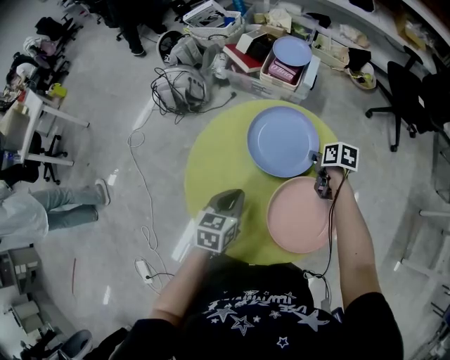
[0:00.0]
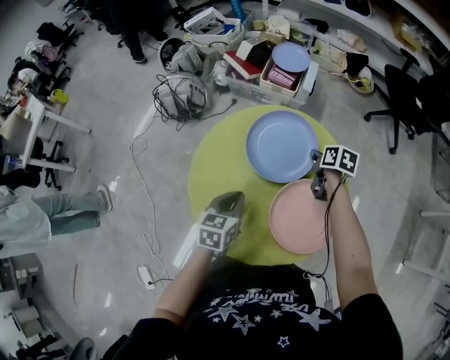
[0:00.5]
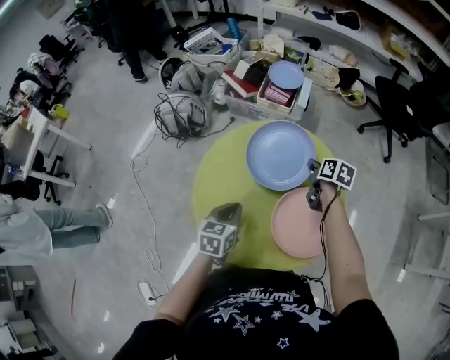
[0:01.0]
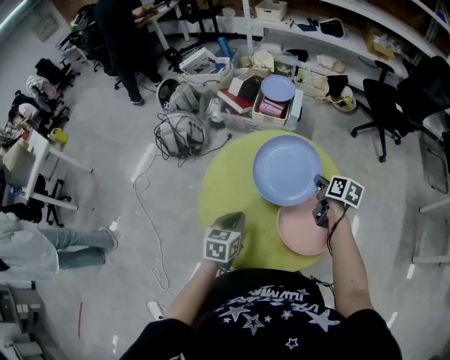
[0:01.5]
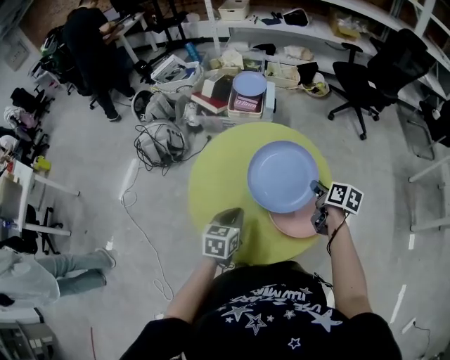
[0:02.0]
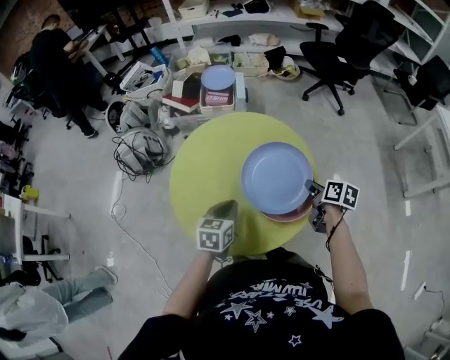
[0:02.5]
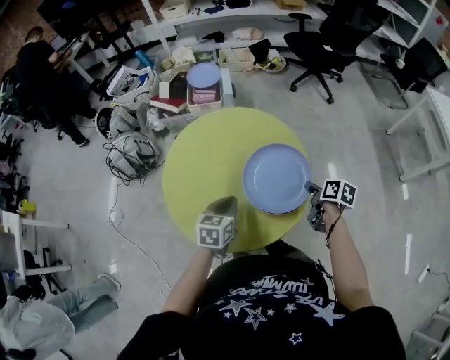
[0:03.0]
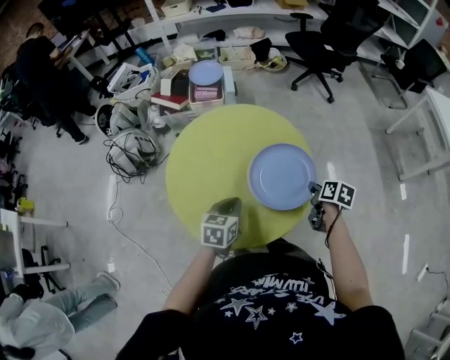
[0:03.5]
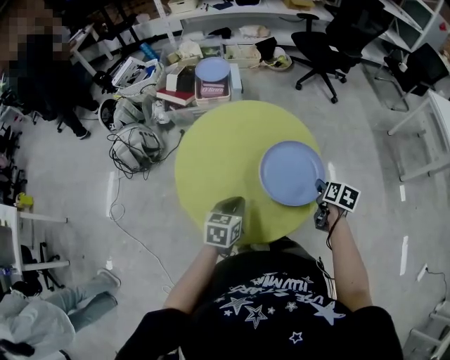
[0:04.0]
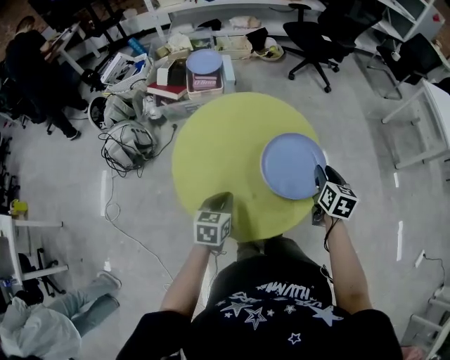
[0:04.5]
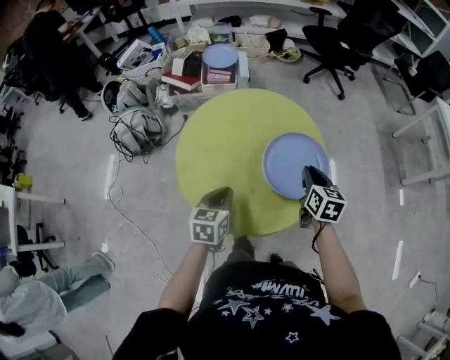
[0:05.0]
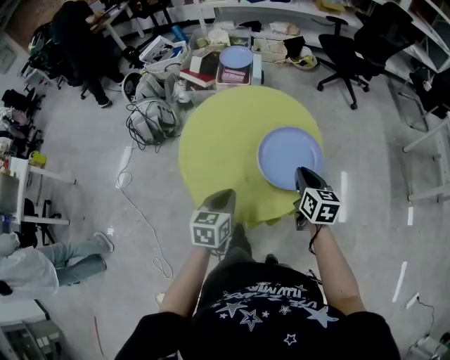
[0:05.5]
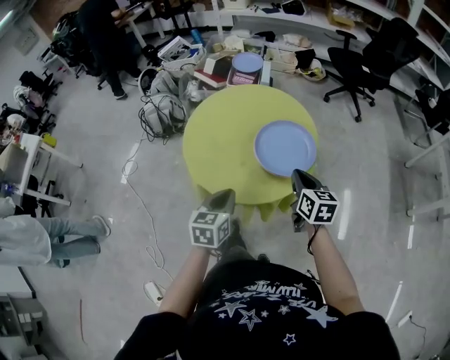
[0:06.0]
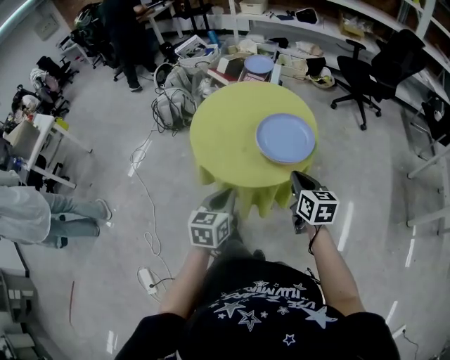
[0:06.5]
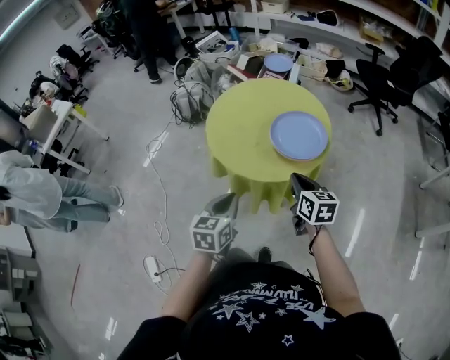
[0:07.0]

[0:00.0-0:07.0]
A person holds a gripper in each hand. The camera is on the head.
0:00.0 to 0:02.0: The right gripper goes about 20 cm backward and upward, and rotates about 30 degrees.
0:02.0 to 0:03.5: The right gripper heads backward, to the right and downward, covering some 15 cm. Meanwhile the left gripper goes roughly 5 cm to the right.
0:03.5 to 0:05.0: The right gripper shifts about 10 cm to the left and upward, rotates approximately 30 degrees, and opens, then closes once more. Meanwhile the left gripper moves to the left, roughly 5 cm.
0:05.0 to 0:07.0: The left gripper shifts by about 30 cm, and changes its angle by about 30 degrees; the right gripper moves about 20 cm, and rotates some 40 degrees.

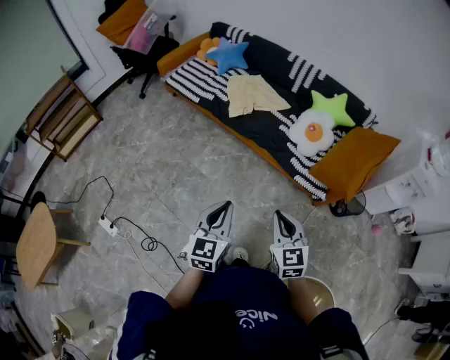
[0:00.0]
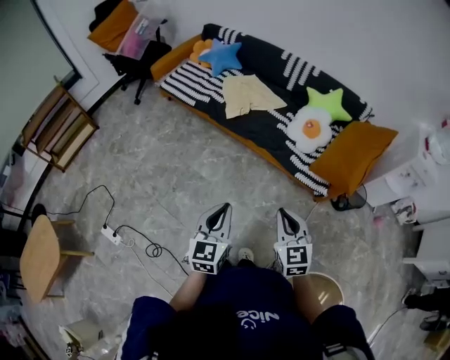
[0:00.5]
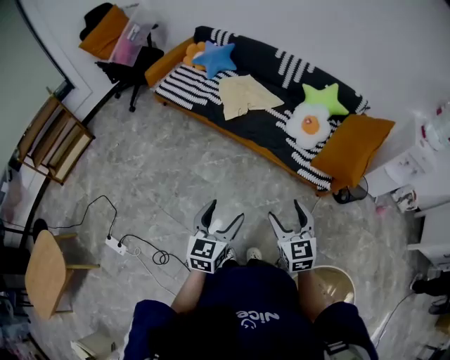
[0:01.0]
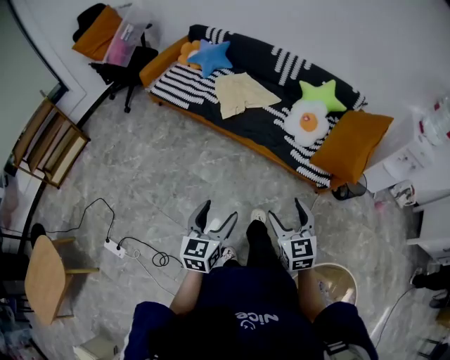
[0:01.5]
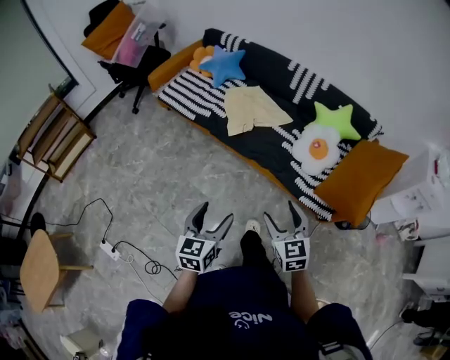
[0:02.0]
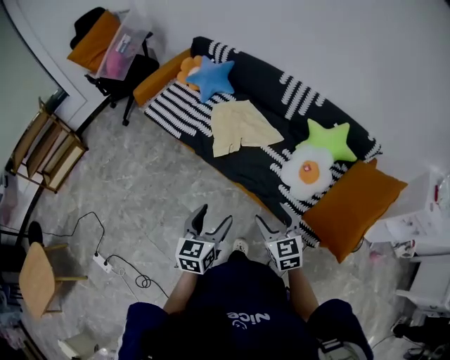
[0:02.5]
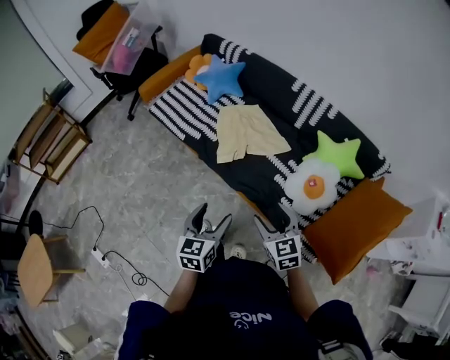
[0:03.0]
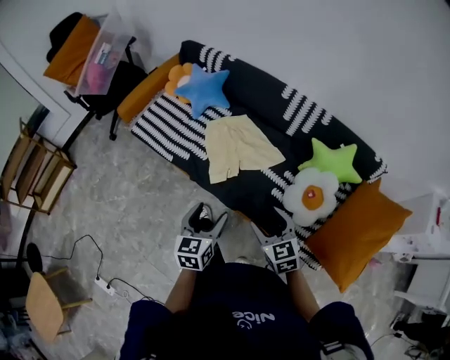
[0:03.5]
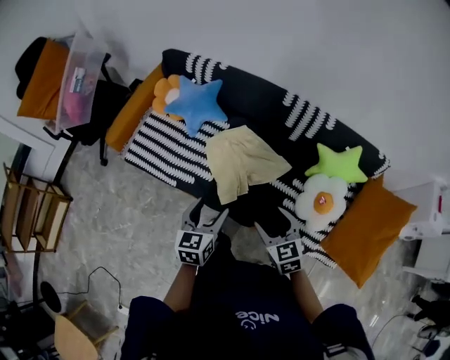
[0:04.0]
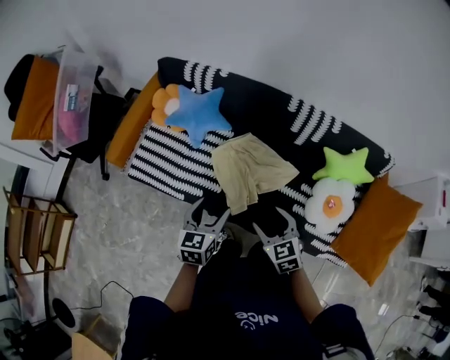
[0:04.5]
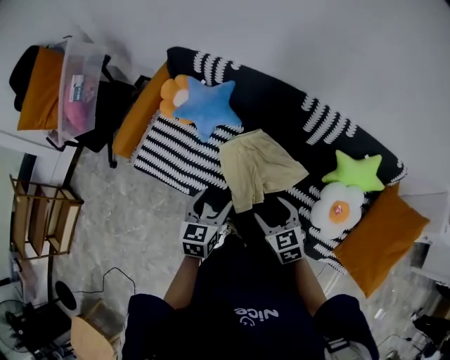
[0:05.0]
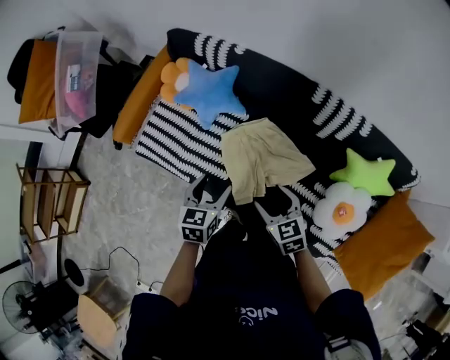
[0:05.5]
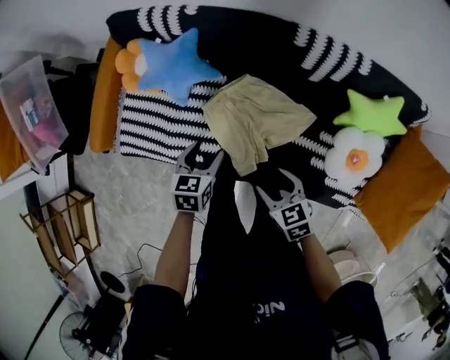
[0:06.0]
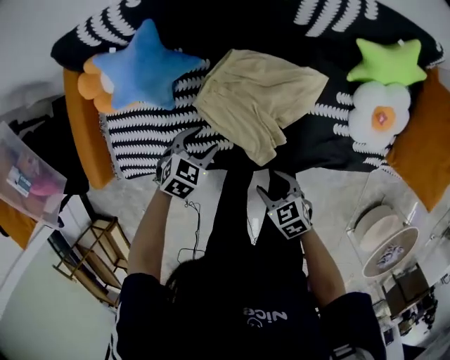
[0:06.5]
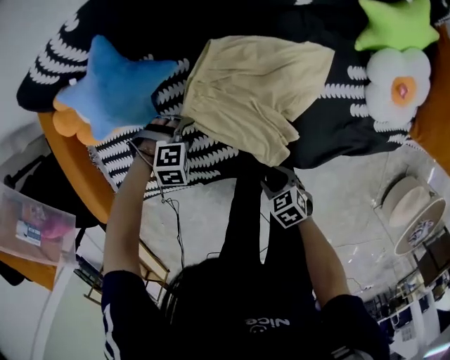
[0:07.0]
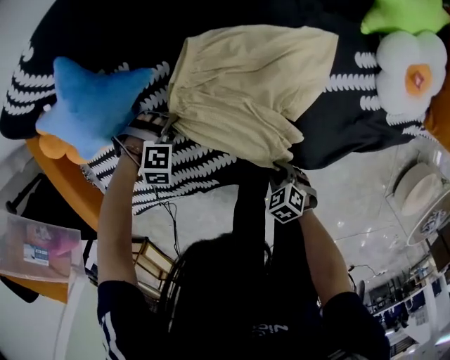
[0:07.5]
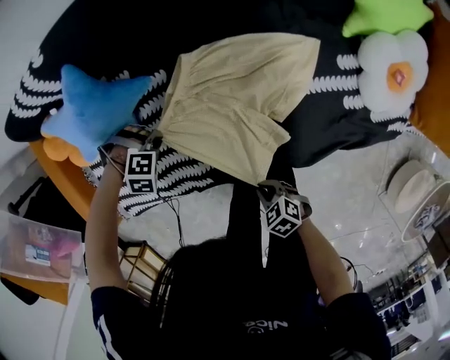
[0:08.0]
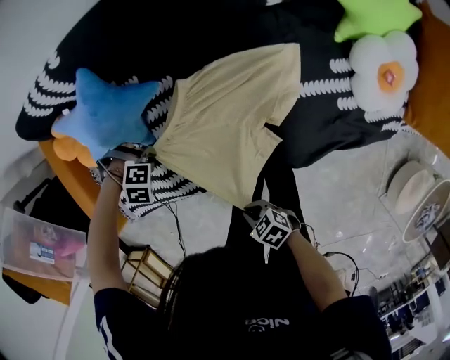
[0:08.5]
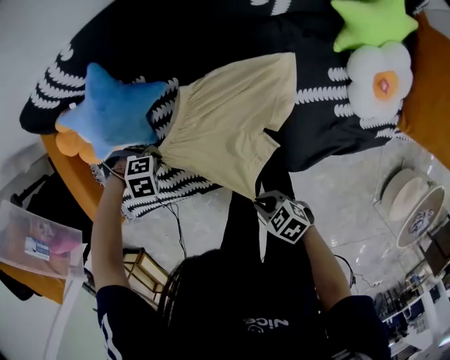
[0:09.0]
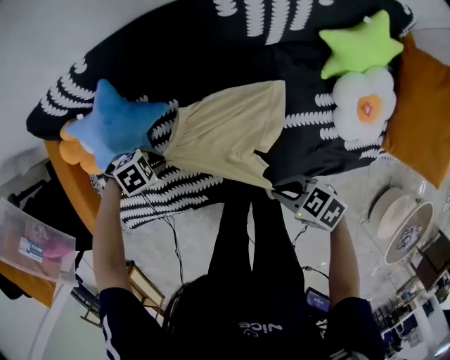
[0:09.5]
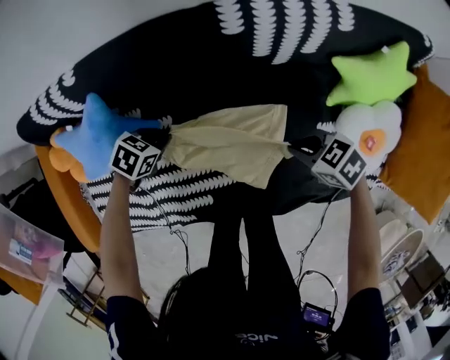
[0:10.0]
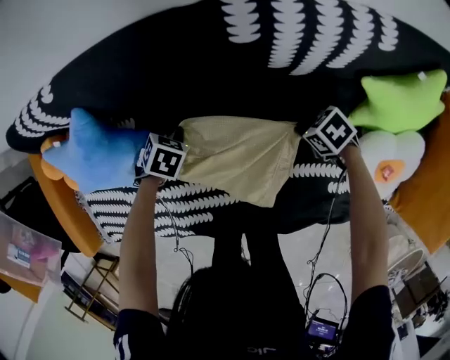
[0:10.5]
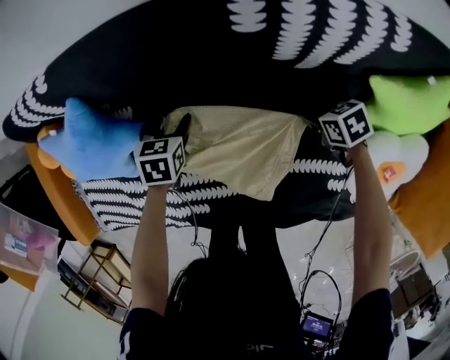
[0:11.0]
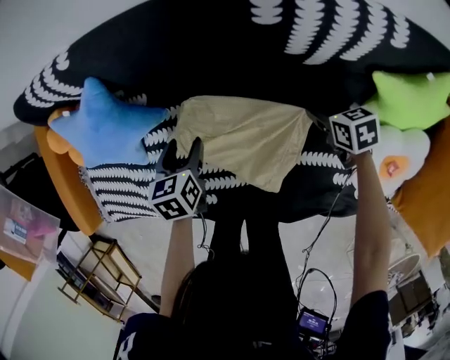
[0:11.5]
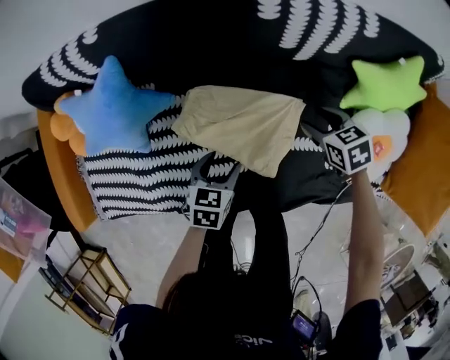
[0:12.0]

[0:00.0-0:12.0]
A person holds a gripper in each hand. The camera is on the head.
0:00.0 to 0:02.0: The right gripper moves forward, roughly 15 cm, and opens its fingers. Meanwhile the left gripper is displaced forward and to the left by about 15 cm, and opens.
0:02.0 to 0:04.0: The two grippers travel together, forward, roughly 50 cm.
0:04.0 to 0:06.0: Both grippers travel together forward and downward, roughly 20 cm. The right gripper rotates roughly 20 degrees. The left gripper rotates some 30 degrees.
0:06.0 to 0:08.0: Both grippers travel together downward, approximately 25 cm. The left gripper rolls clockwise, seen from behind, by about 110 degrees, and closes up, while the right gripper rotates approximately 20 degrees, and closes up.
0:08.0 to 0:10.0: The left gripper ends up roughly 20 cm from where it was, and twists about 80 degrees counterclockwise, seen from behind; the right gripper ends up about 40 cm from where it was.
0:10.0 to 0:12.0: The right gripper reaches about 15 cm downward, then returns, turns by approximately 20 degrees, and opens, while the left gripper moves approximately 10 cm downward and comes back, changes its angle by some 30 degrees, and opens its fingers.

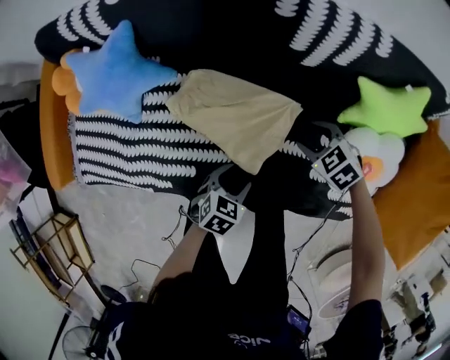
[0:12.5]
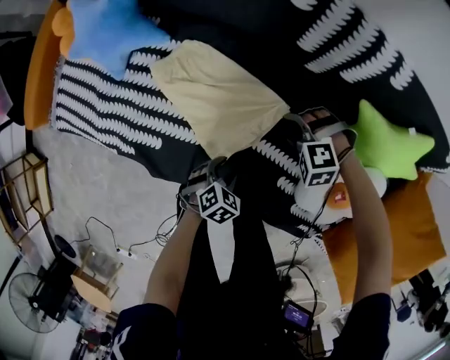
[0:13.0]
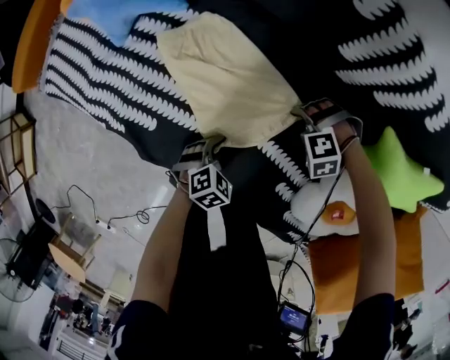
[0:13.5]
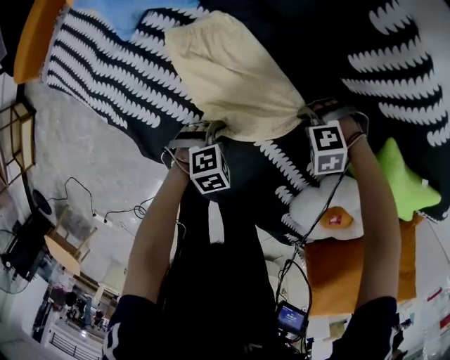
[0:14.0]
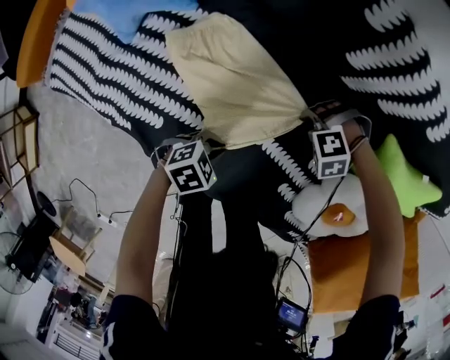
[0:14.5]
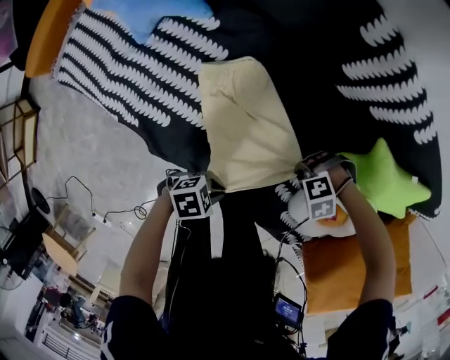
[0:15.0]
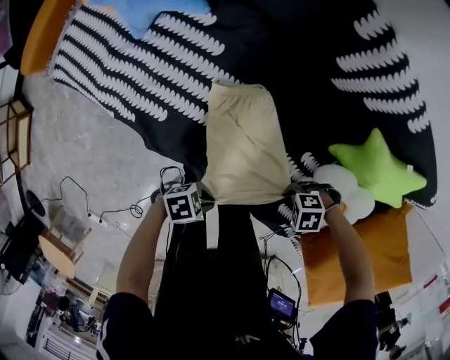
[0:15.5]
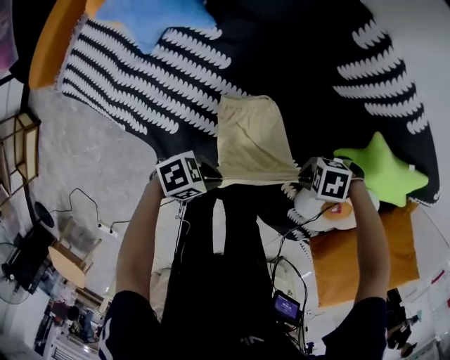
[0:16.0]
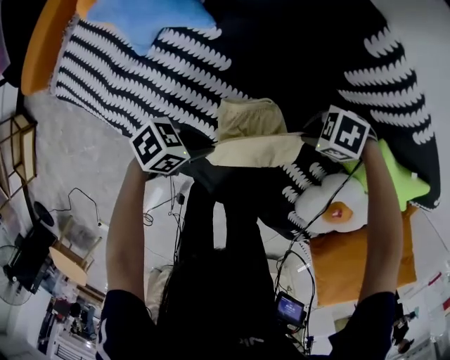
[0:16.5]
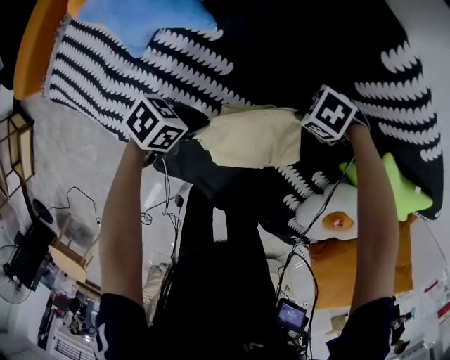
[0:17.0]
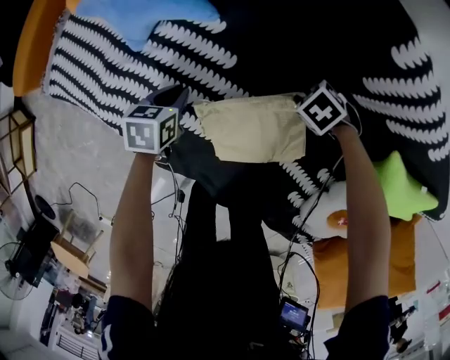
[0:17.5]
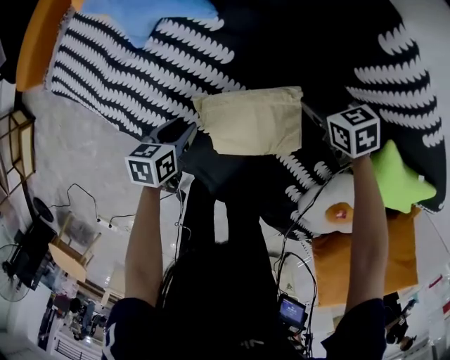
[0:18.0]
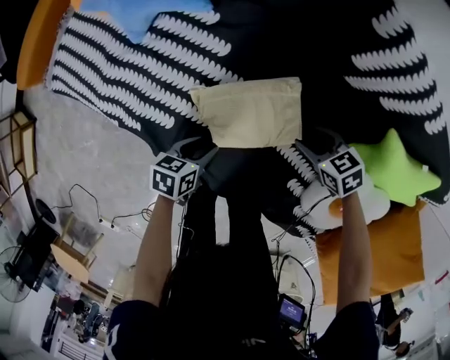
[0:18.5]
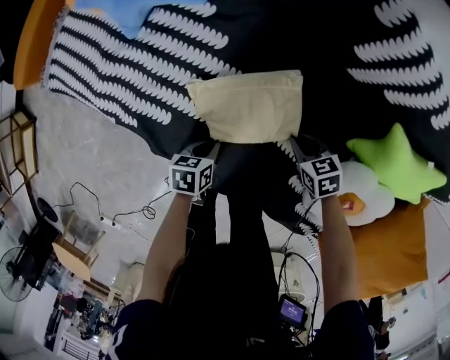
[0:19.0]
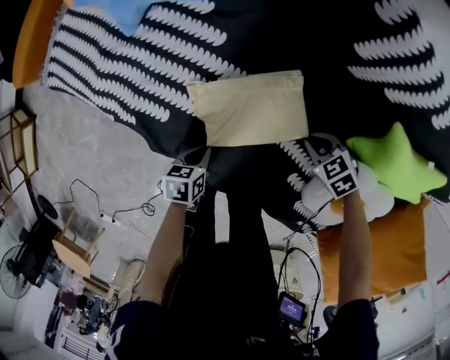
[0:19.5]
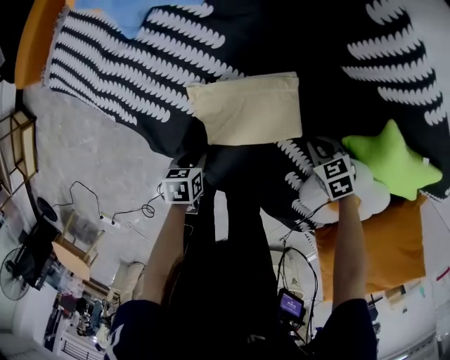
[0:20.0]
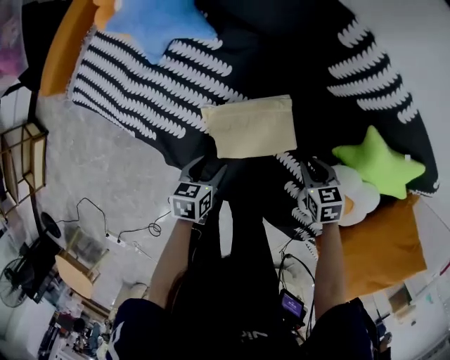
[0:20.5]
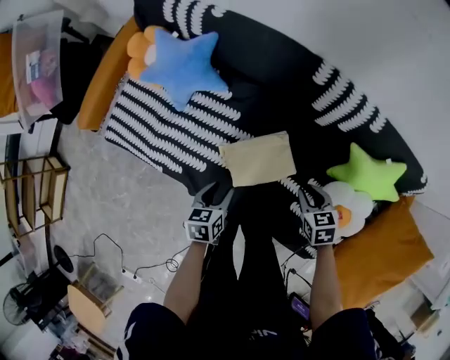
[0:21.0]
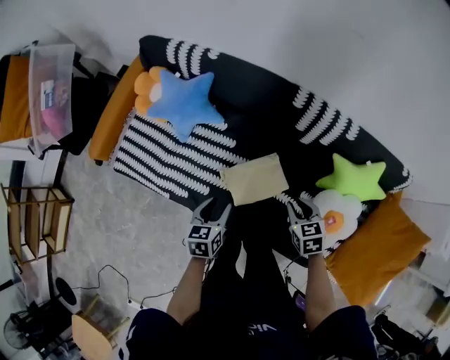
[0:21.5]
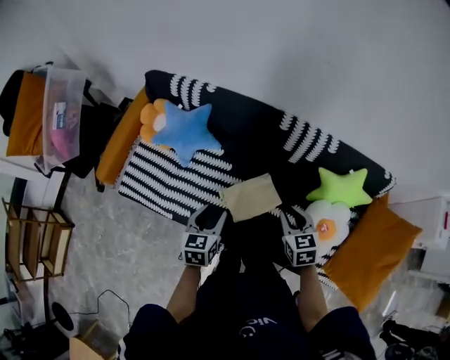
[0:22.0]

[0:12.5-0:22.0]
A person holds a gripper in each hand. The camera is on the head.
0:12.5 to 0:14.5: The left gripper heads downward, covering about 10 cm, and closes; the right gripper heads downward, covering roughly 15 cm, rolls counterclockwise, seen from behind, by approximately 80 degrees, and closes its fingers.
0:14.5 to 0:16.5: The right gripper heads upward, covering some 10 cm, and twists some 40 degrees clockwise, seen from behind. The left gripper rotates roughly 30 degrees.
0:16.5 to 0:18.0: The left gripper changes its angle by roughly 50 degrees. The right gripper goes downward and returns, about 10 cm each way, swivels roughly 50 degrees, and opens.
0:18.0 to 0:20.0: The left gripper moves some 15 cm. Meanwhile the right gripper moves roughly 20 cm, and closes up.
0:20.0 to 0:22.0: The two grippers go roughly 40 cm upward. The right gripper changes its angle by roughly 50 degrees. The left gripper angles its fingers upward, by about 40 degrees.
